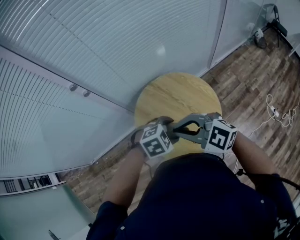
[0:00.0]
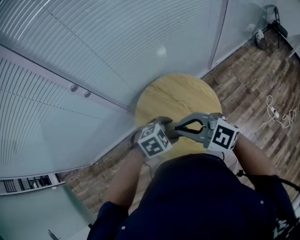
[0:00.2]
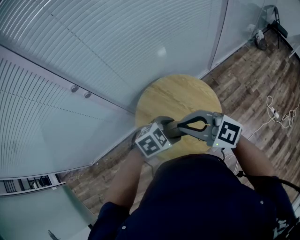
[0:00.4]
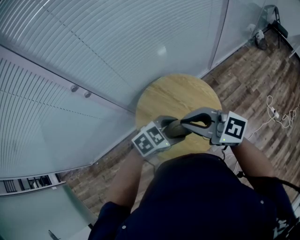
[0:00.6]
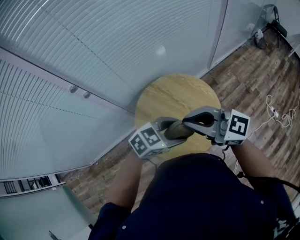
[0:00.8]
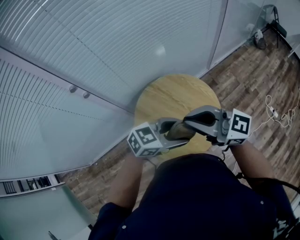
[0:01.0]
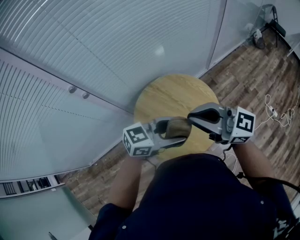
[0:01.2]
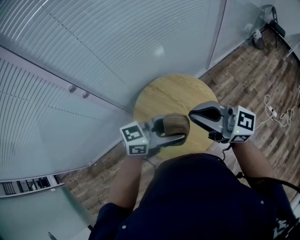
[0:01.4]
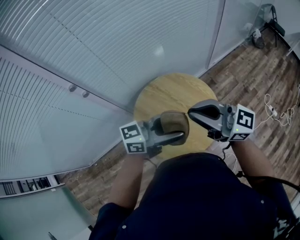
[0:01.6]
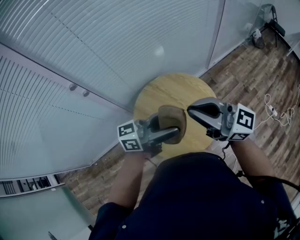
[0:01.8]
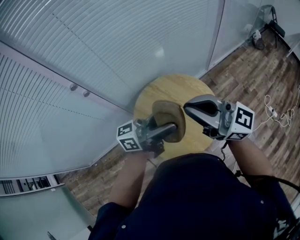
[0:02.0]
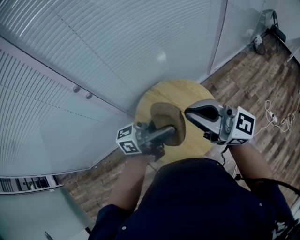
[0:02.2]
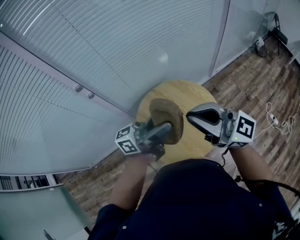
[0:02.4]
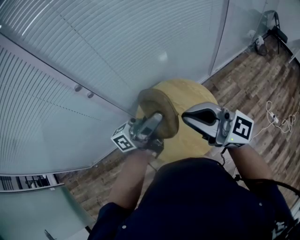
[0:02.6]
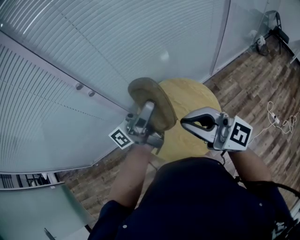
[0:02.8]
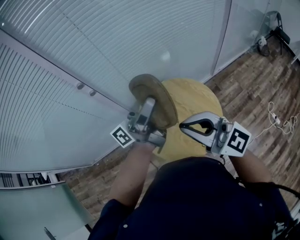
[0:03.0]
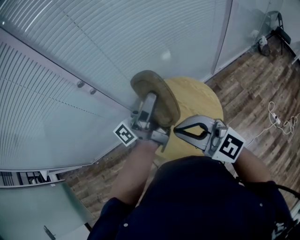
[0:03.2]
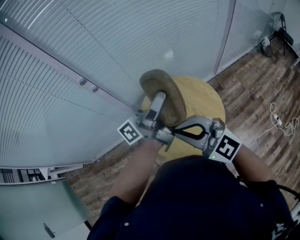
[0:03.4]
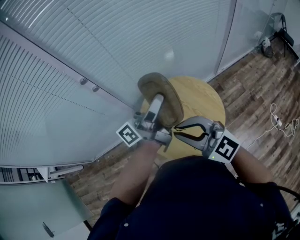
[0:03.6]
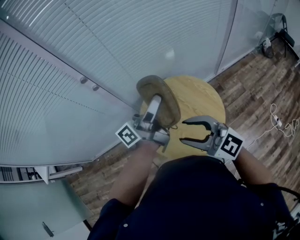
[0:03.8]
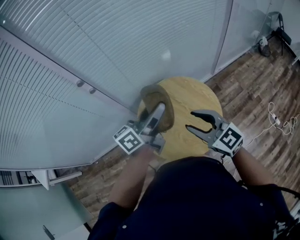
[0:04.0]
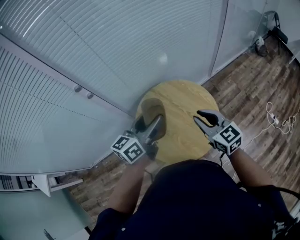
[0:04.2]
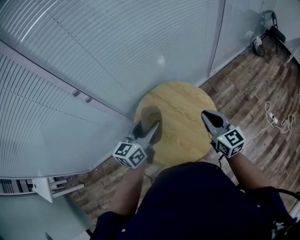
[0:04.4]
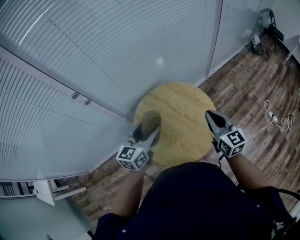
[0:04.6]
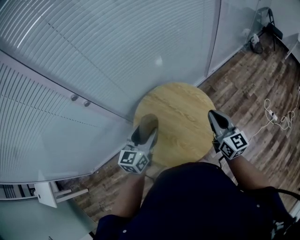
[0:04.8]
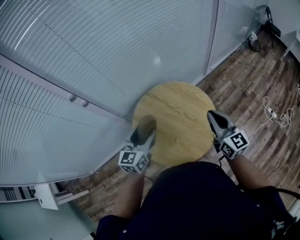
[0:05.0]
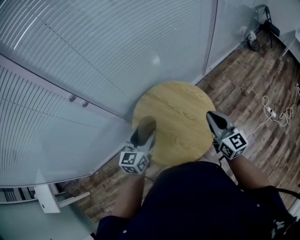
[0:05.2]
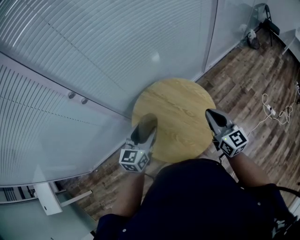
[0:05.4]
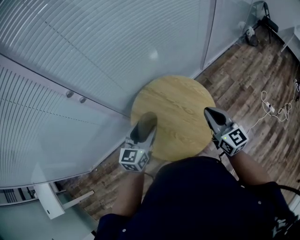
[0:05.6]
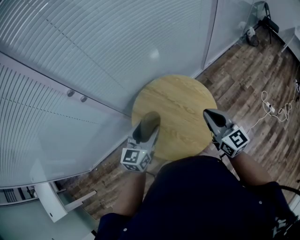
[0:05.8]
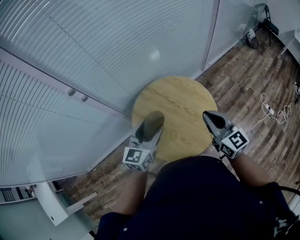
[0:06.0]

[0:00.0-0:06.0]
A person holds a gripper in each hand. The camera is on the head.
0:00.0 to 0:01.6: The two grippers go approximately 10 cm upward. The left gripper tips its fingers upward by roughly 60 degrees; the right gripper tips its fingers upward by approximately 40 degrees.
0:01.6 to 0:03.0: The right gripper changes place by about 5 cm; the left gripper moves upward, about 15 cm, and tips its fingers upward by roughly 40 degrees.
0:03.0 to 0:04.4: The right gripper travels downward, to the right and forward by some 20 cm, changes its angle by some 50 degrees, and opens, then closes again. The left gripper heads downward, covering approximately 20 cm, and tilts its fingers roughly 50 degrees downward.

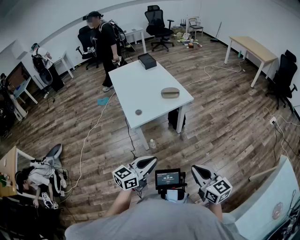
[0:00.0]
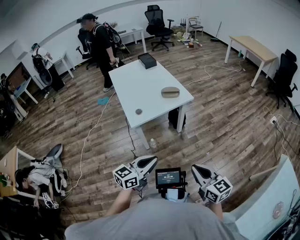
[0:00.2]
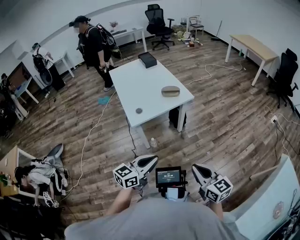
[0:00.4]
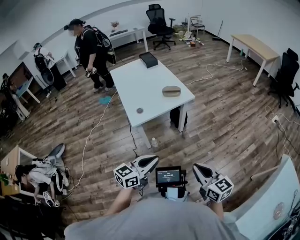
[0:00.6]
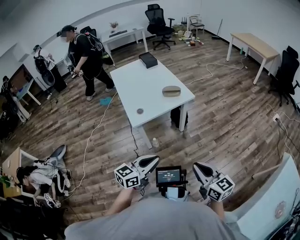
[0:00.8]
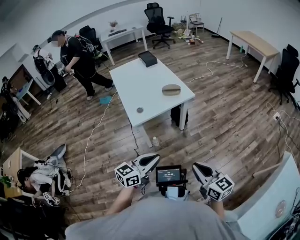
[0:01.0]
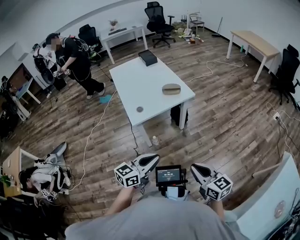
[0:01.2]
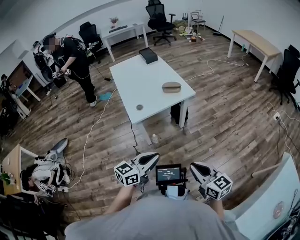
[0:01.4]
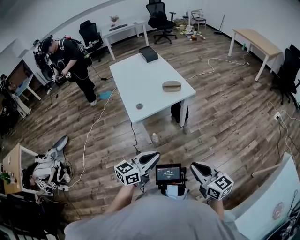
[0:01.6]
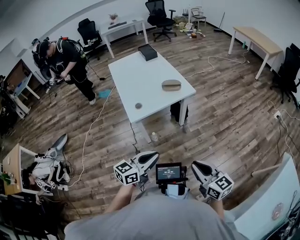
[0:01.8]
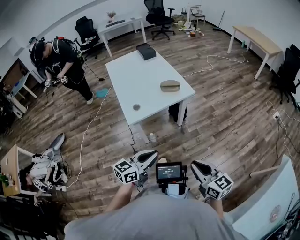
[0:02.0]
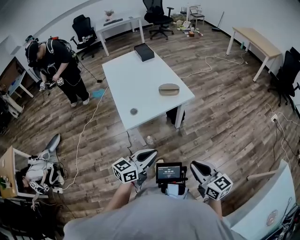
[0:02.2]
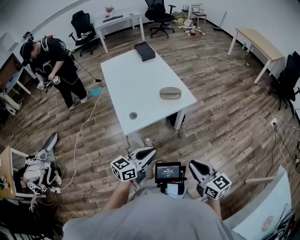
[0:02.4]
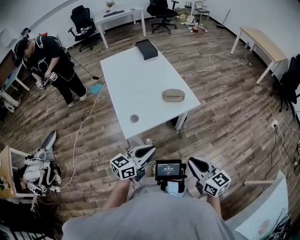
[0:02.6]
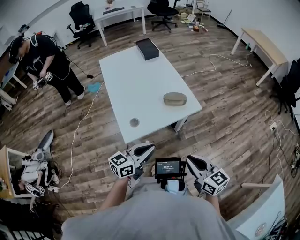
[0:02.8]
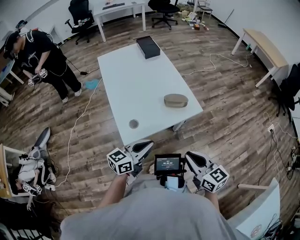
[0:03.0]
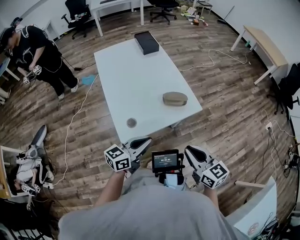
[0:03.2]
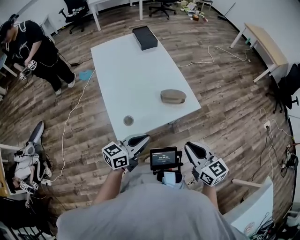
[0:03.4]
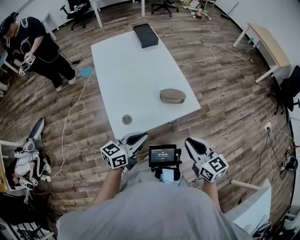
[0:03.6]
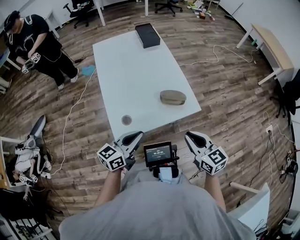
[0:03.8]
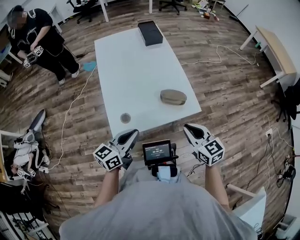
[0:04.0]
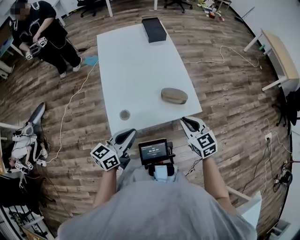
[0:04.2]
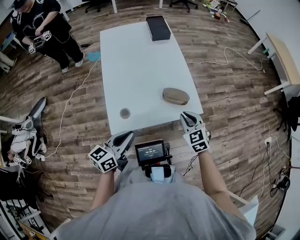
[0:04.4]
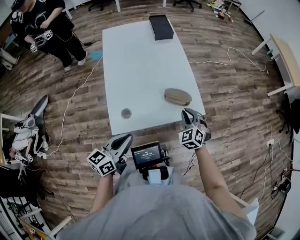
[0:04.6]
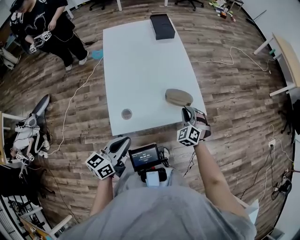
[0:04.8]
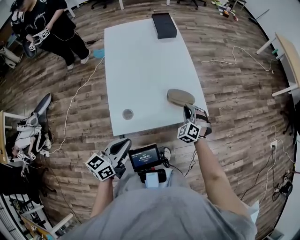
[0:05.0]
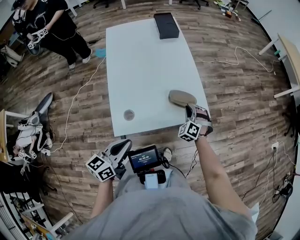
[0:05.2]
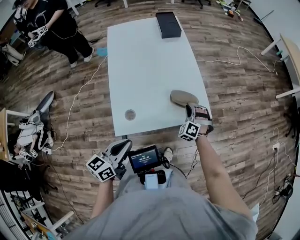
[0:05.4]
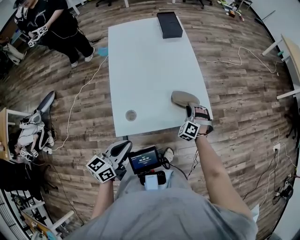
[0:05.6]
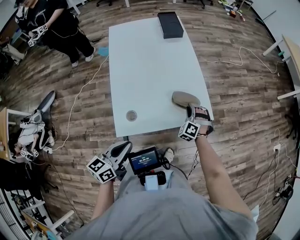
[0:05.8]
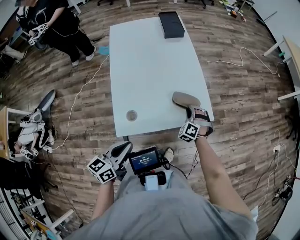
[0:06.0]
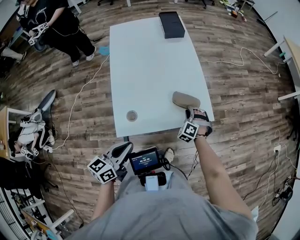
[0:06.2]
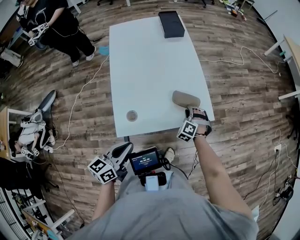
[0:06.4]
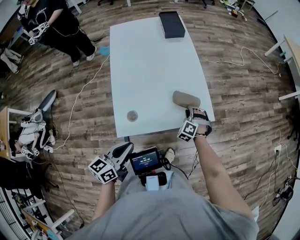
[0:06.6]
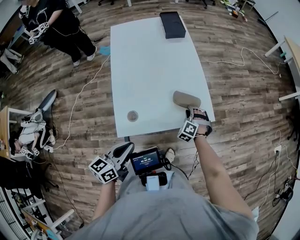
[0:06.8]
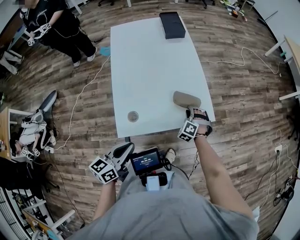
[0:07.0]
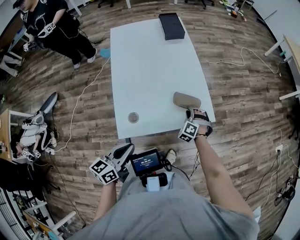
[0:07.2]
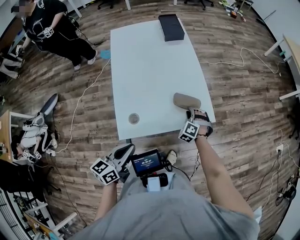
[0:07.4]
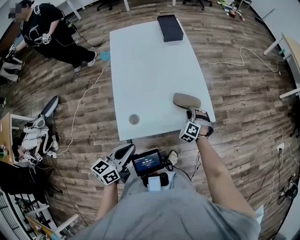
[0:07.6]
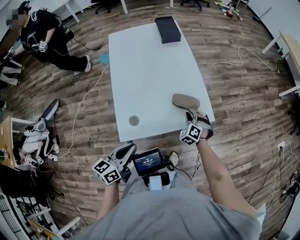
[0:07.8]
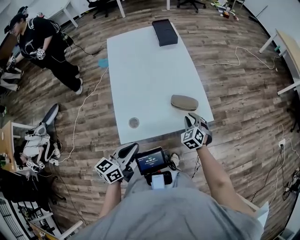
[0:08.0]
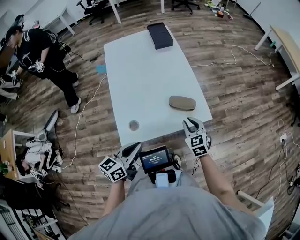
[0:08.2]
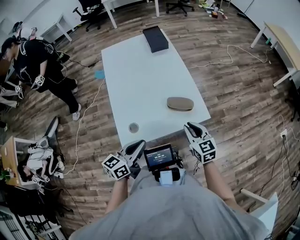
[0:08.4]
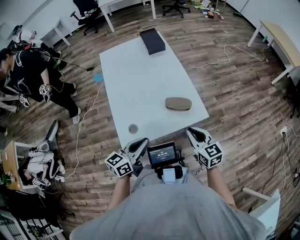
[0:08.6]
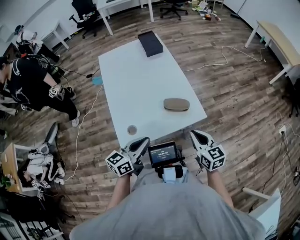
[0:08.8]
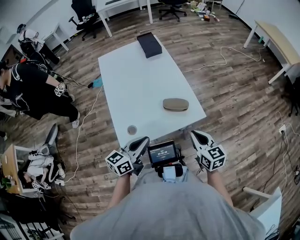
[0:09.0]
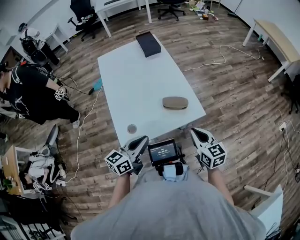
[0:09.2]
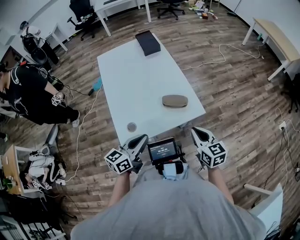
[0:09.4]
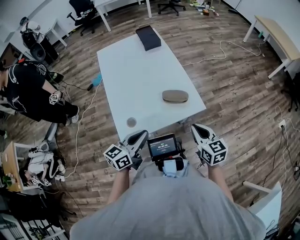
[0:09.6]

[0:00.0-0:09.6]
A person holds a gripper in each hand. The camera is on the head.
0:00.0 to 0:01.6: The grippers stay close to where they were, moving slightly.
0:01.6 to 0:03.2: The grippers both shift forward by approximately 30 cm.
0:03.2 to 0:04.8: The left gripper rotates approximately 30 degrees. Meanwhile the right gripper shifts some 30 cm forward and downward, and rolls counterclockwise, seen from behind, by about 60 degrees.
0:04.8 to 0:06.4: The right gripper goes about 10 cm downward, and turns by some 20 degrees.
0:06.4 to 0:08.0: The right gripper moves upward, some 5 cm, and rotates roughly 40 degrees.
0:08.0 to 0:09.6: The right gripper moves upward, backward and to the right, roughly 20 cm, and rolls clockwise, seen from behind, by roughly 40 degrees. Meanwhile the left gripper shifts approximately 5 cm to the right.

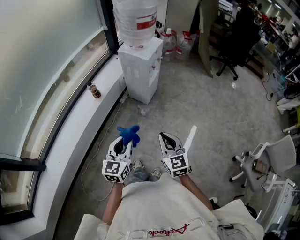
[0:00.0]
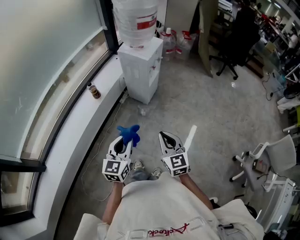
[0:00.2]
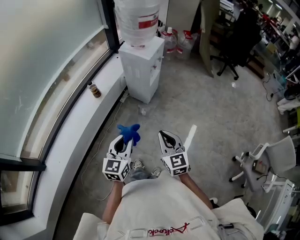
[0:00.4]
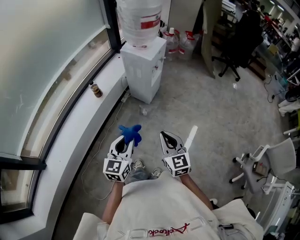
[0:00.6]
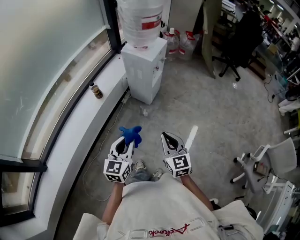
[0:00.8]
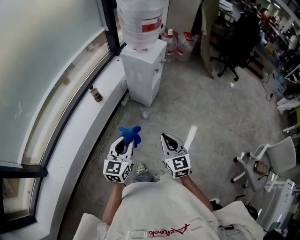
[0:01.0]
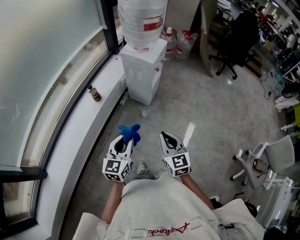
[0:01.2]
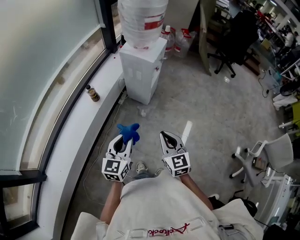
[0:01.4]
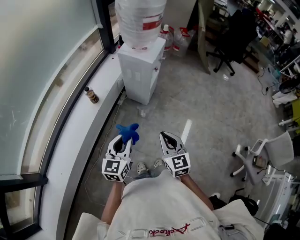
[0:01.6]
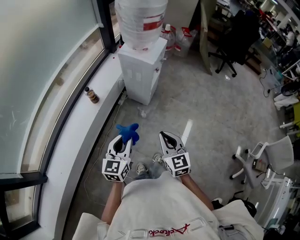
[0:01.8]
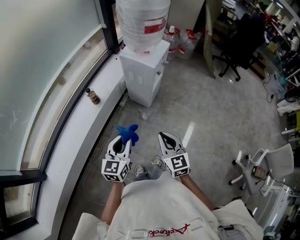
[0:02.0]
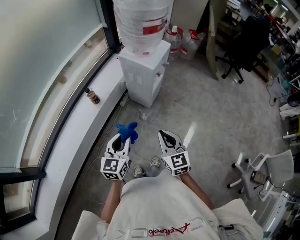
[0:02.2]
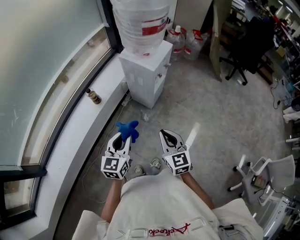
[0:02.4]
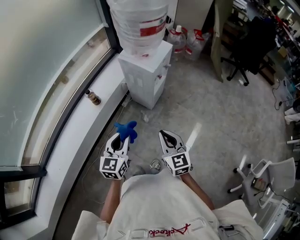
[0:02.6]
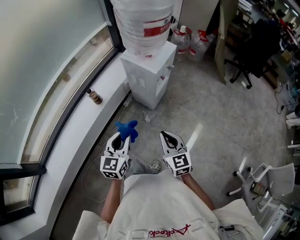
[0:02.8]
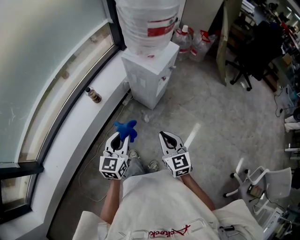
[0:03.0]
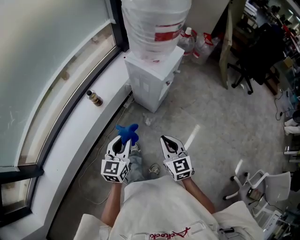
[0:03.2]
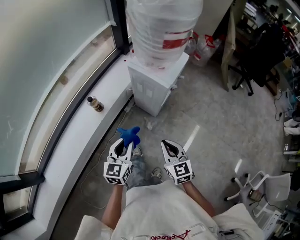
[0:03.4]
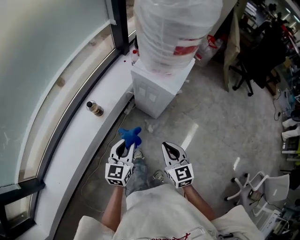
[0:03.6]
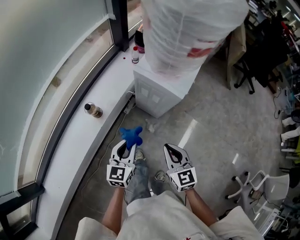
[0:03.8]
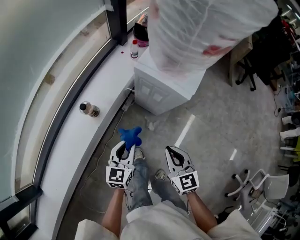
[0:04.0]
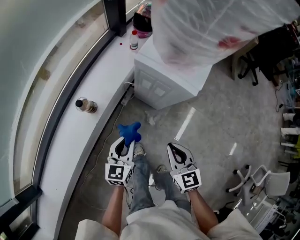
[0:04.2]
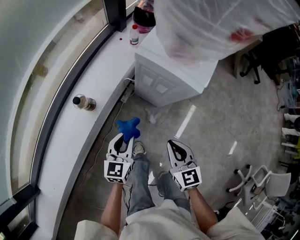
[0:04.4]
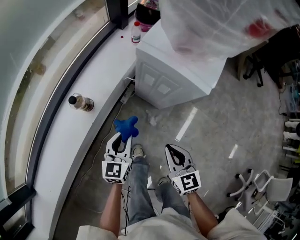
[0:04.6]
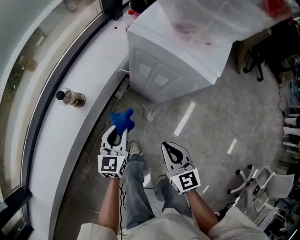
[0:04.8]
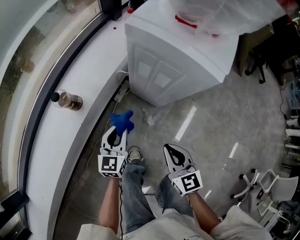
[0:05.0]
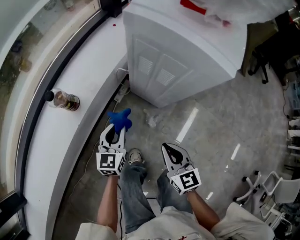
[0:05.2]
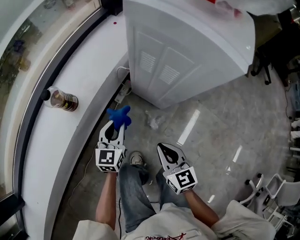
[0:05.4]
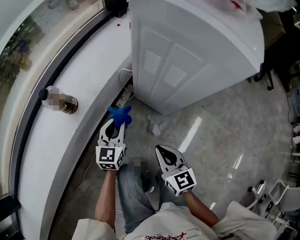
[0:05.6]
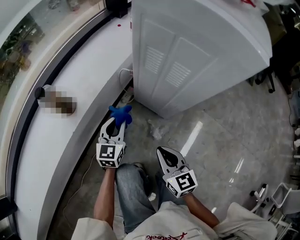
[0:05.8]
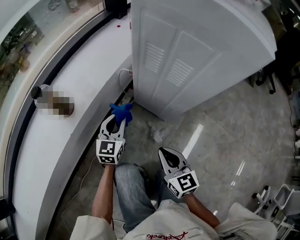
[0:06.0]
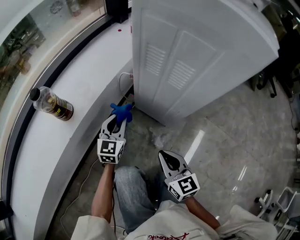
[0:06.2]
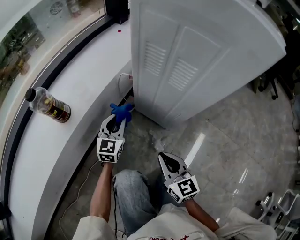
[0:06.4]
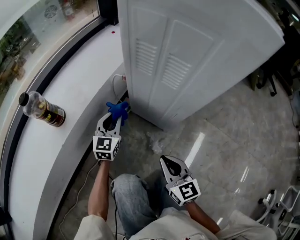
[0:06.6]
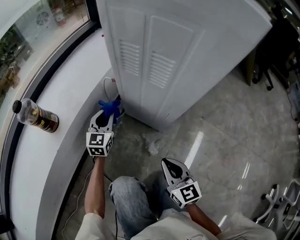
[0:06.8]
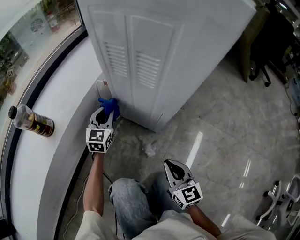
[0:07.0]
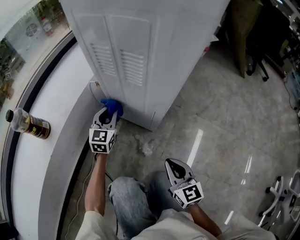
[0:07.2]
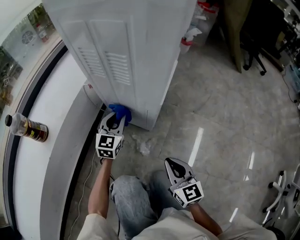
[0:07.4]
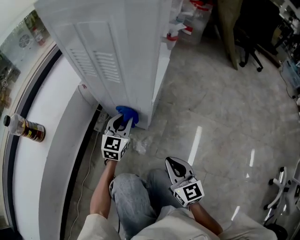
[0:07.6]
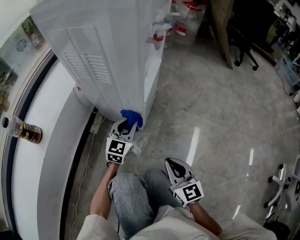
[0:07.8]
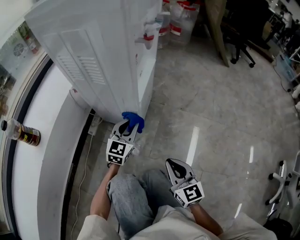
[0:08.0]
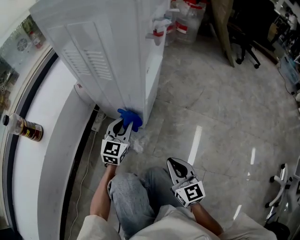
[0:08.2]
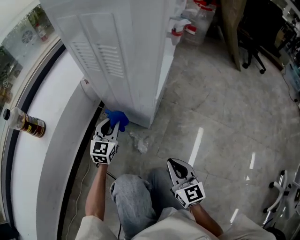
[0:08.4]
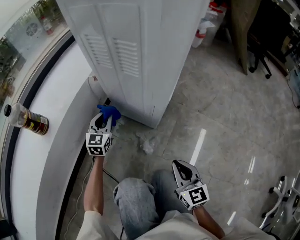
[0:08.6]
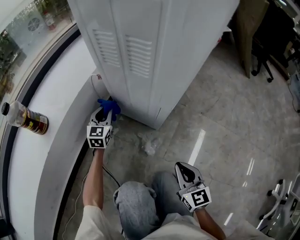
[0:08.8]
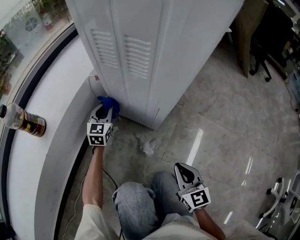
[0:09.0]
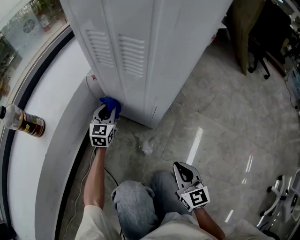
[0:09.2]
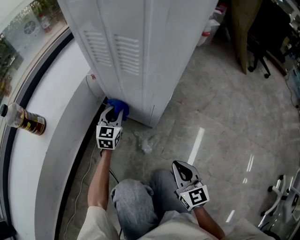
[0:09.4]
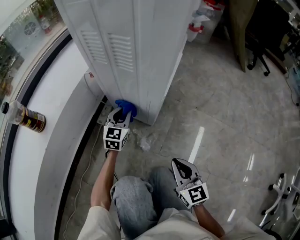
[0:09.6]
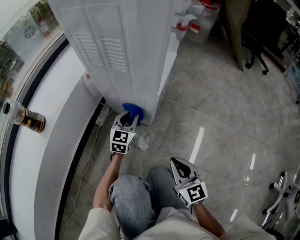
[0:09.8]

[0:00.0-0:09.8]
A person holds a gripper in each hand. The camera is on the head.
0:00.0 to 0:01.4: Both grippers travel together forward and to the left, roughly 10 cm.
0:01.4 to 0:02.8: Both grippers move forward and to the right, some 15 cm.
0:02.8 to 0:04.2: The two grippers go approximately 25 cm forward, downward and to the left.
0:04.2 to 0:05.6: The grippers both shift downward by roughly 30 cm.
0:05.6 to 0:07.0: The right gripper heads downward and to the right, covering roughly 15 cm. The left gripper goes some 20 cm forward and downward.
0:07.0 to 0:08.4: The left gripper shifts about 10 cm to the right and backward, while the right gripper is displaced to the right by approximately 5 cm.
0:08.4 to 0:09.8: The left gripper travels to the right by roughly 10 cm.
